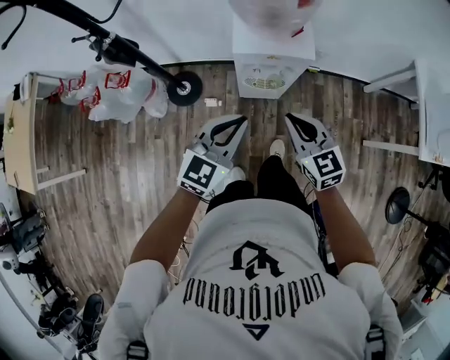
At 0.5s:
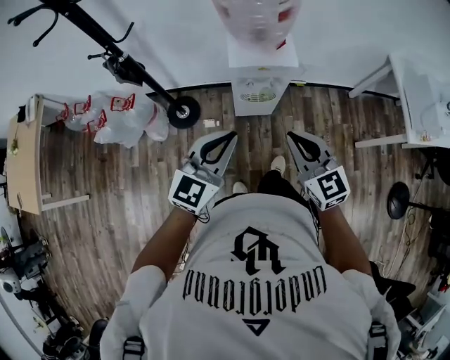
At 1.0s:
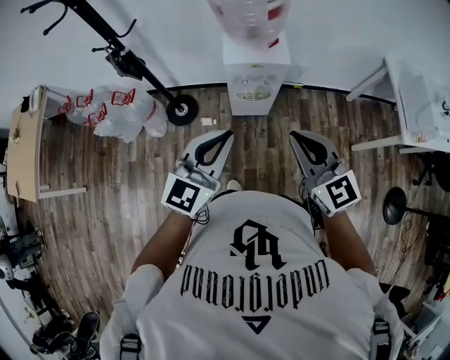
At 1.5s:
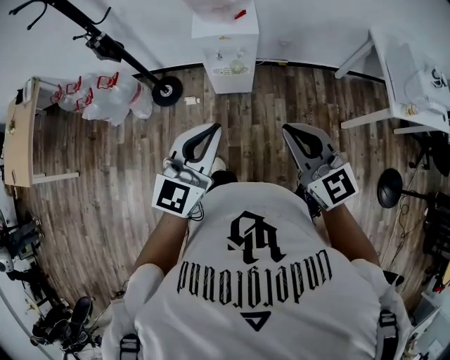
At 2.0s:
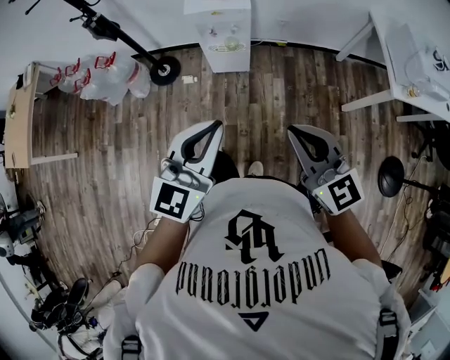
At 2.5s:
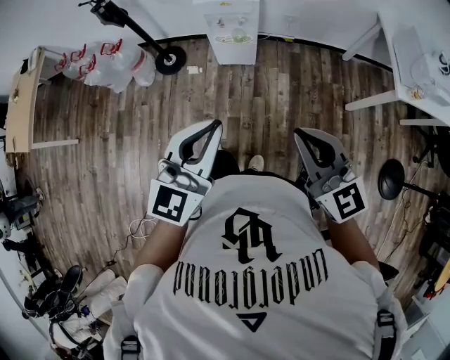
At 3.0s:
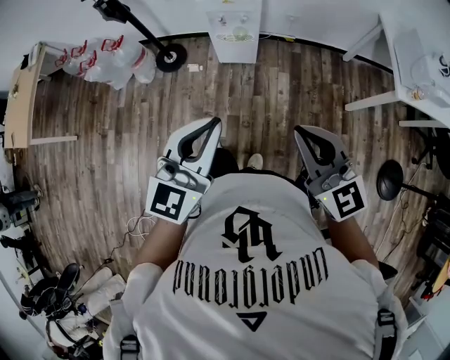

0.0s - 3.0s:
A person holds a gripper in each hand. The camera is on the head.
0.0s - 1.5s: The grippers both shift backward, upward and to the right by about 30 cm.
1.5s - 3.0s: Both grippers move backward, about 15 cm.

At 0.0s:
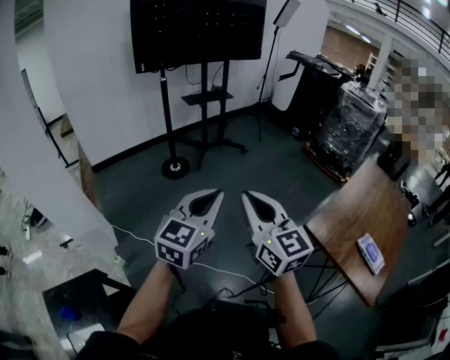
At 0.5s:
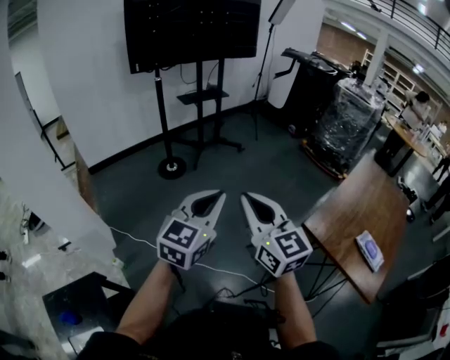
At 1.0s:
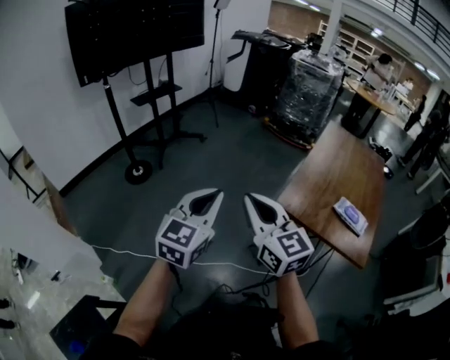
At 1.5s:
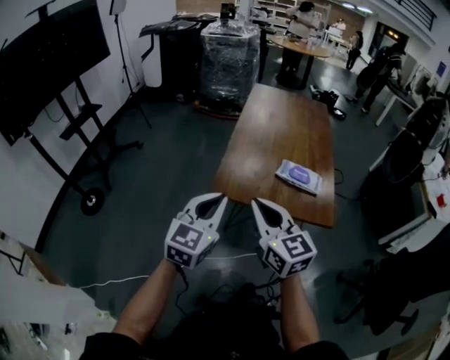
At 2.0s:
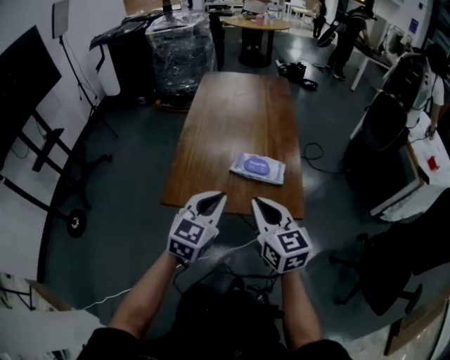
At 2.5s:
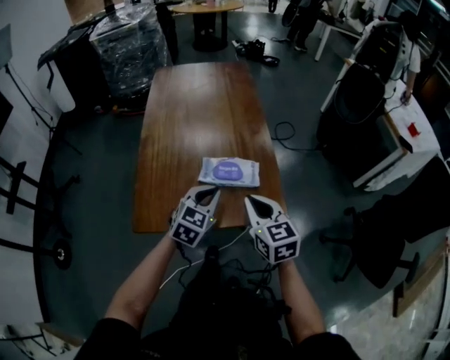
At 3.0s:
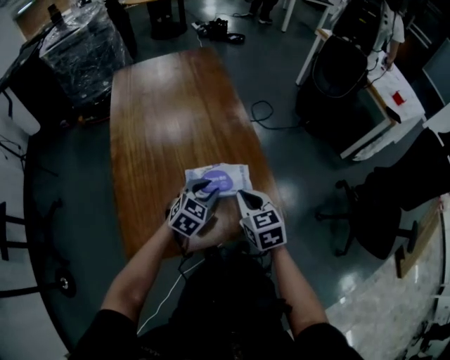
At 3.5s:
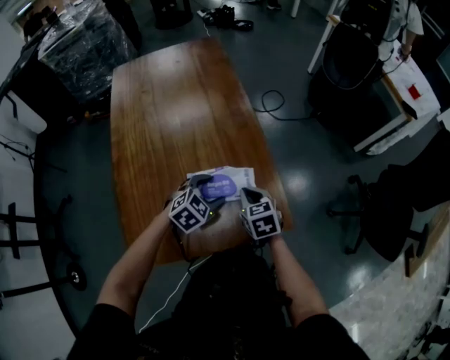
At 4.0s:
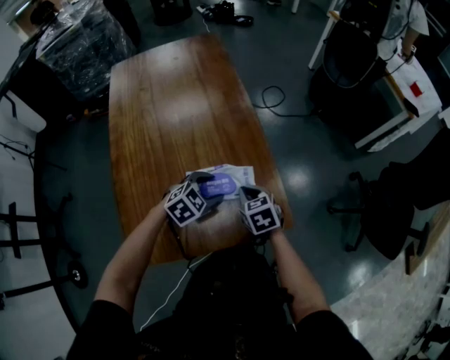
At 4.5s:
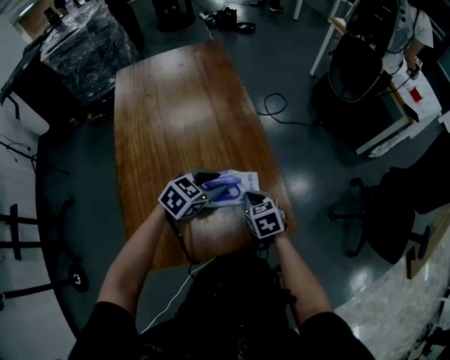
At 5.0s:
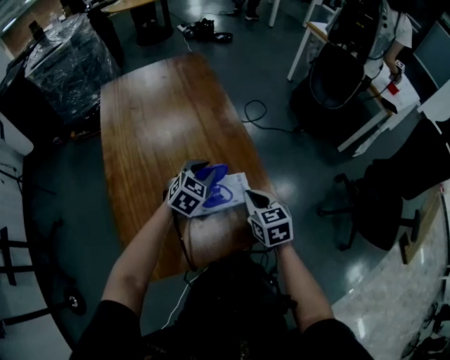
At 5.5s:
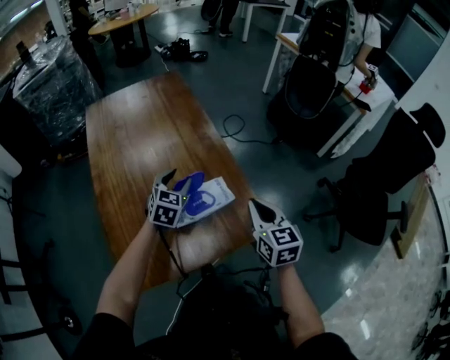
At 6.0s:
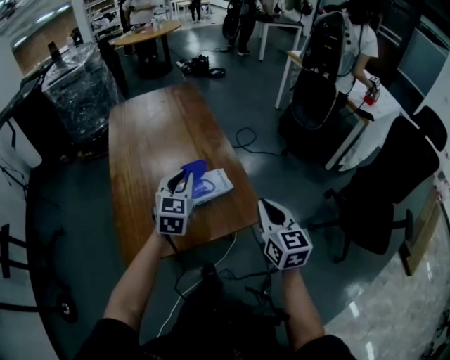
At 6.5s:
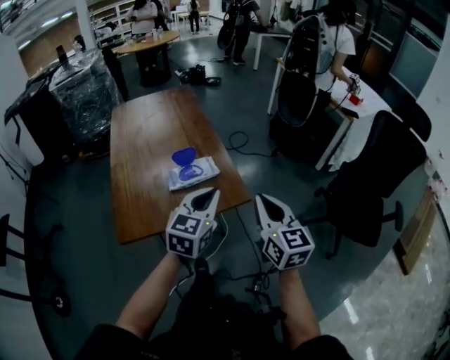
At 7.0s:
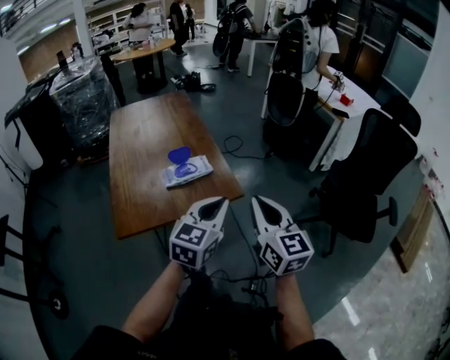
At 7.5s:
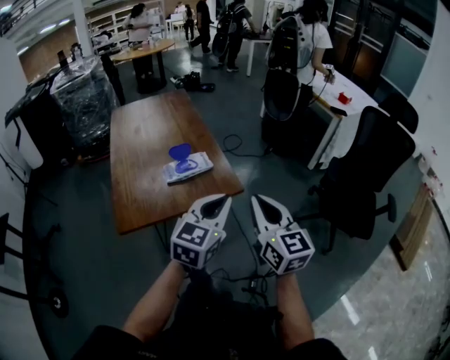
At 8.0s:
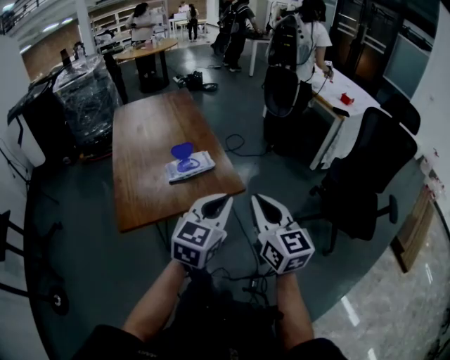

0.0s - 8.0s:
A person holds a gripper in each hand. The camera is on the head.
0.0s - 2.0s: Both grippers are carried approximately 60 cm. The right gripper changes its angle by some 60 degrees; the left gripper rotates about 50 degrees.
2.0s - 4.0s: The right gripper ends up some 35 cm from where it was, and tilts its fingers about 40 degrees downward, while the left gripper shifts by some 30 cm, tilts its fingers approximately 40 degrees downward, and opens up.
4.0s - 6.0s: The right gripper heads upward, to the right and backward, covering about 25 cm, and points its fingers some 40 degrees further upward. Meanwhile the left gripper heads upward, covering roughly 20 cm, points its fingers roughly 30 degrees further upward, and closes.
6.0s - 8.0s: The left gripper goes some 35 cm backward and to the right, and rotates about 20 degrees, while the right gripper shifts about 20 cm backward and upward.

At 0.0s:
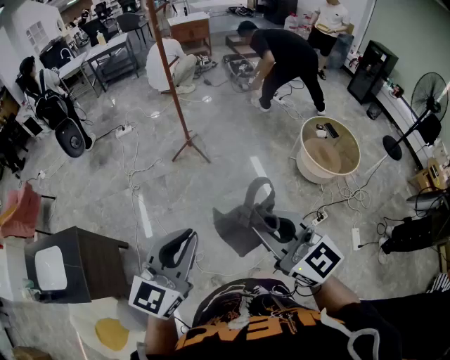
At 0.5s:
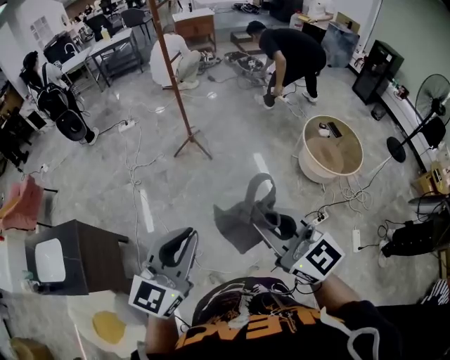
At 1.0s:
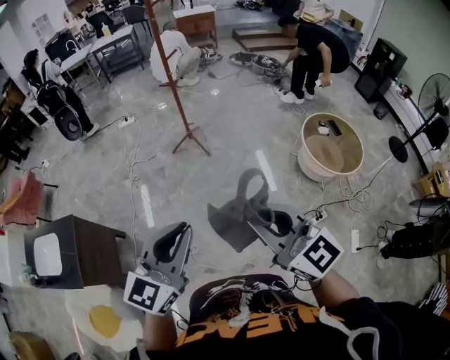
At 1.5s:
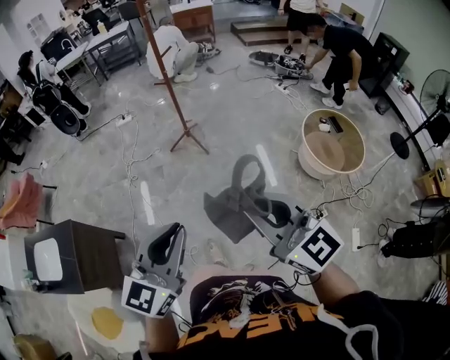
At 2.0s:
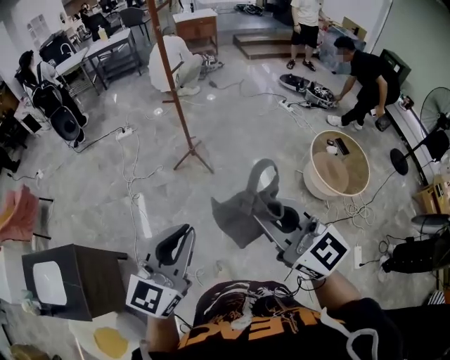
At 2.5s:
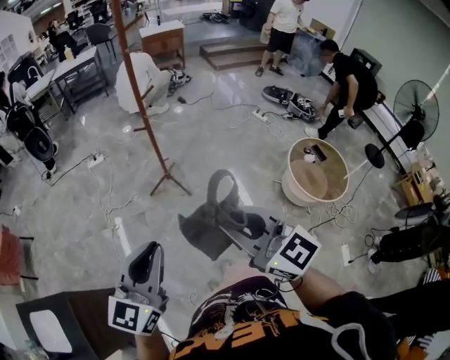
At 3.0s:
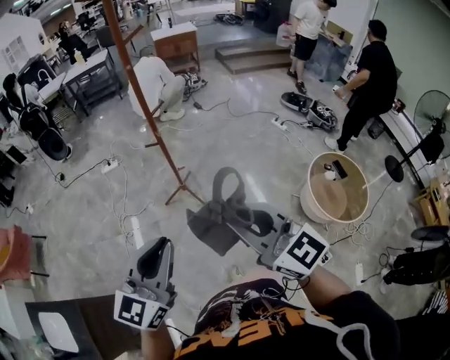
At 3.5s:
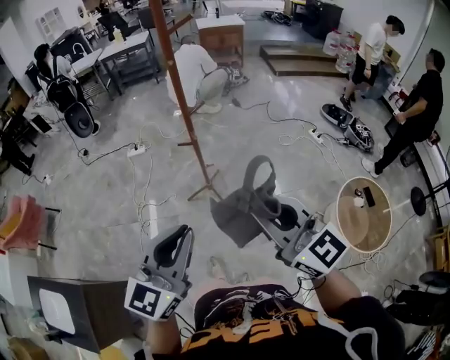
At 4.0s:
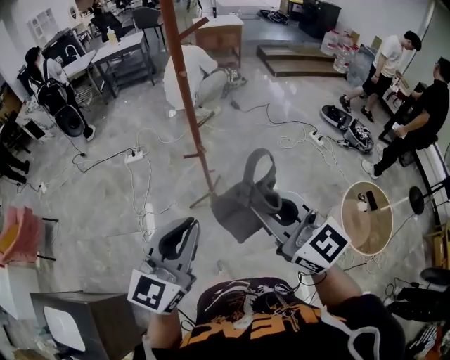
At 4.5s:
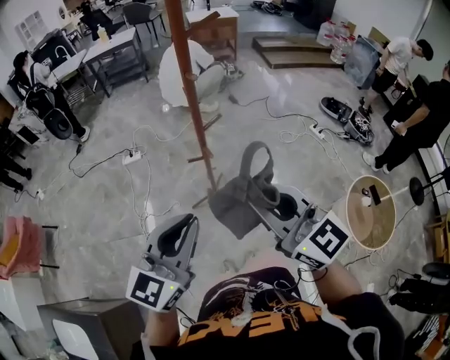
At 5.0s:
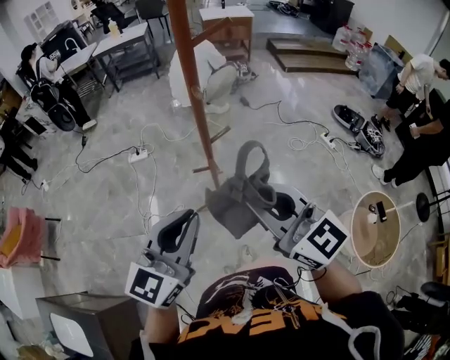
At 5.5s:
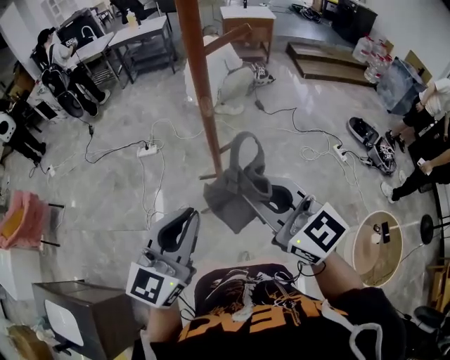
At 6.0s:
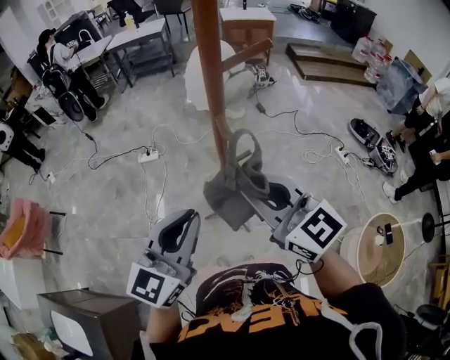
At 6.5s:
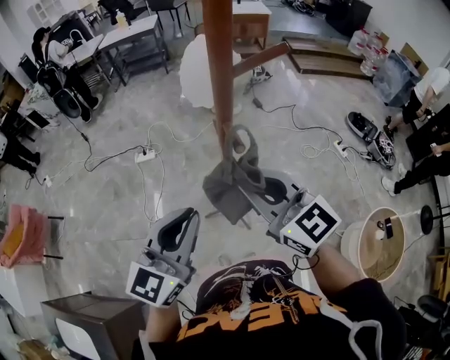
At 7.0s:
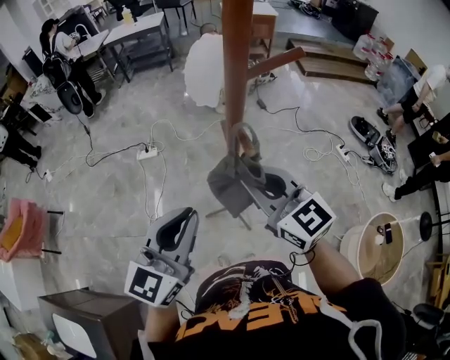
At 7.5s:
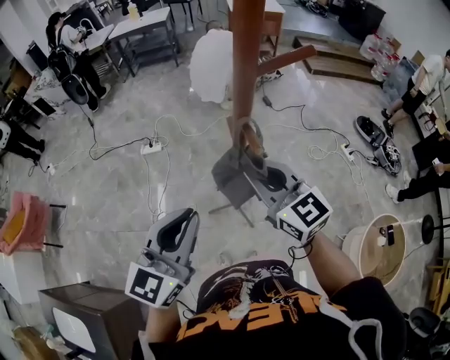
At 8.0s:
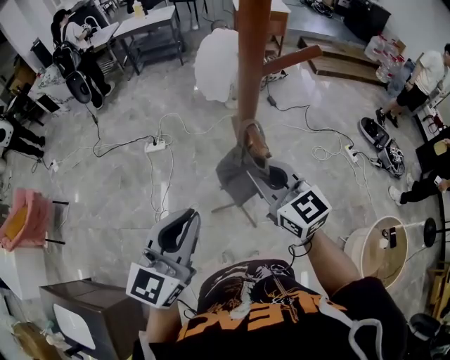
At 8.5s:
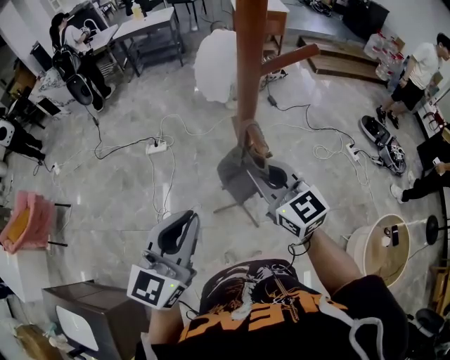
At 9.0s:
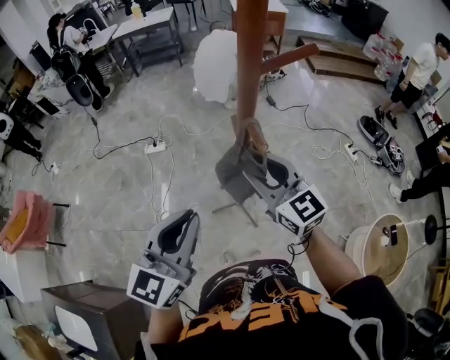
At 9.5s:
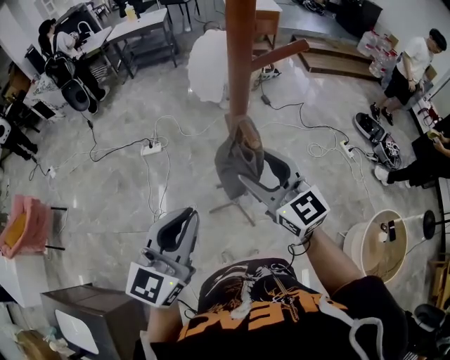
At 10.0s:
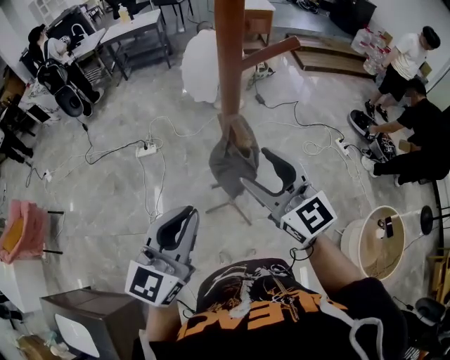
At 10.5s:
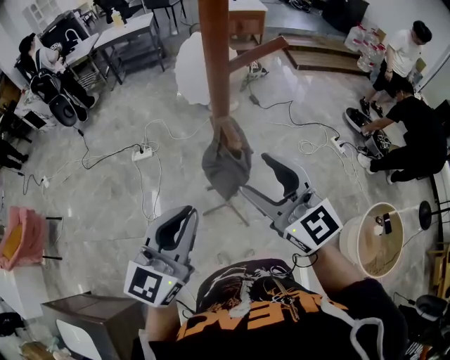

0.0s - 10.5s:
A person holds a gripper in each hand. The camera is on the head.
0.0s - 2.0s: Both grippers move forward, about 20 cm.
2.0s - 4.0s: Both grippers are carried forward, roughly 50 cm.
4.0s - 6.5s: Both grippers travel together forward, some 30 cm.
6.5s - 8.5s: The right gripper shifts approximately 10 cm downward and forward.
8.5s - 10.5s: The right gripper moves upward and backward, some 10 cm, and opens its fingers.

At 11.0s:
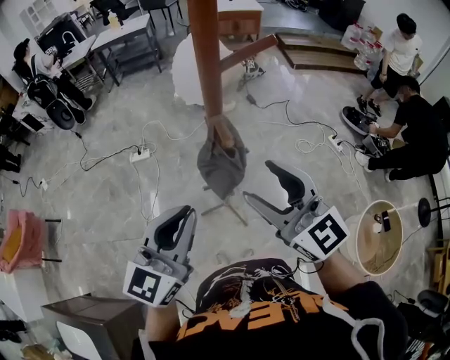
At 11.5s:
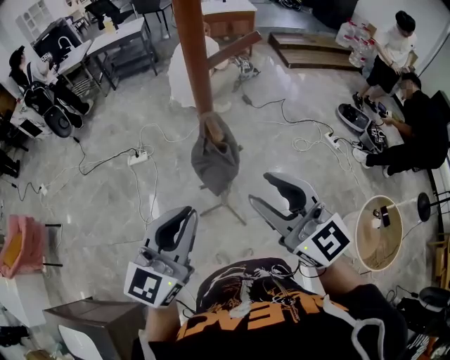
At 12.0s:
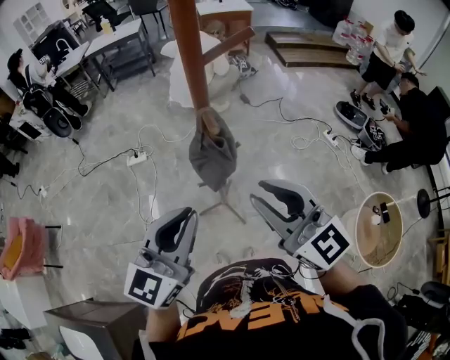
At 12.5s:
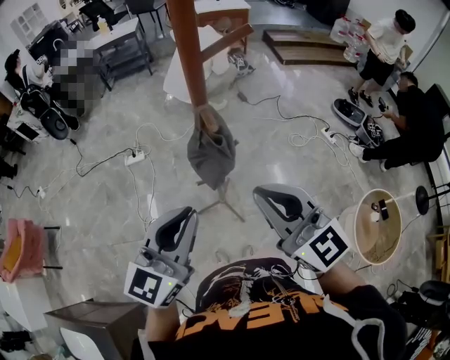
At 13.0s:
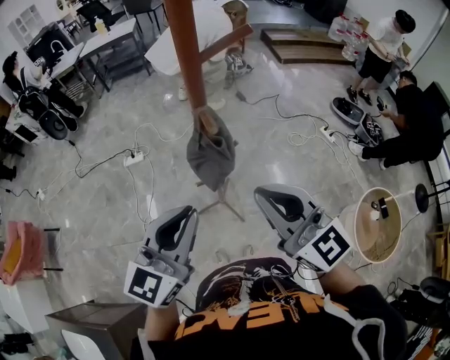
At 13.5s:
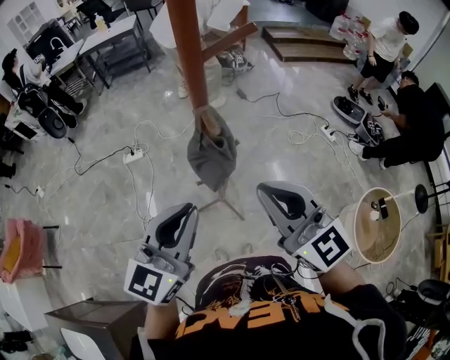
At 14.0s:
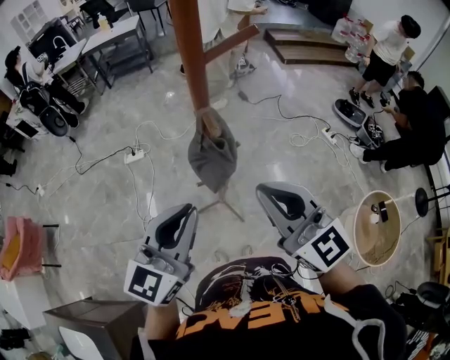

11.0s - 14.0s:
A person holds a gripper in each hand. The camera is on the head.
11.0s - 12.5s: The right gripper goes some 5 cm backward, and closes up.
12.5s - 14.0s: The grippers move only a little.

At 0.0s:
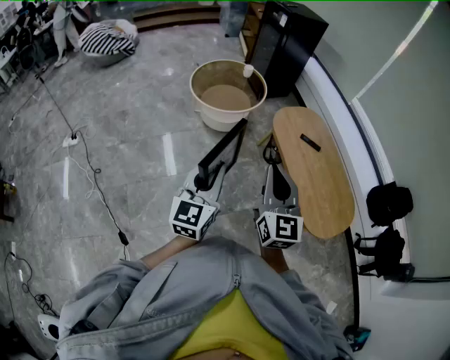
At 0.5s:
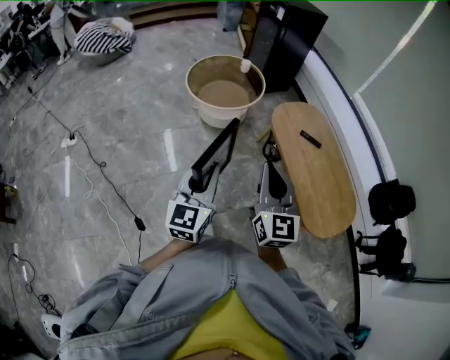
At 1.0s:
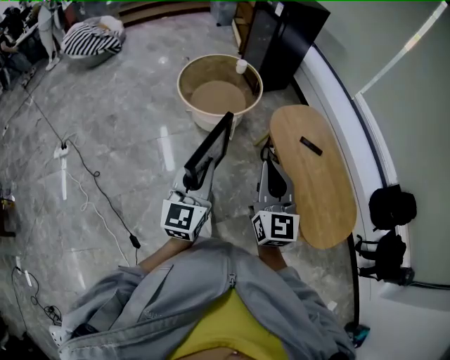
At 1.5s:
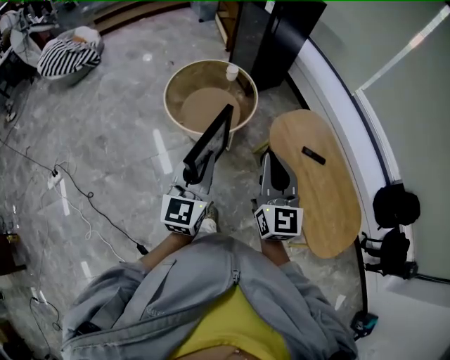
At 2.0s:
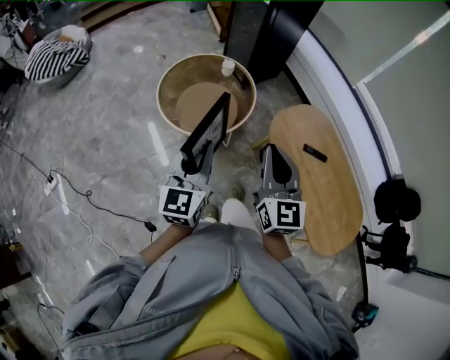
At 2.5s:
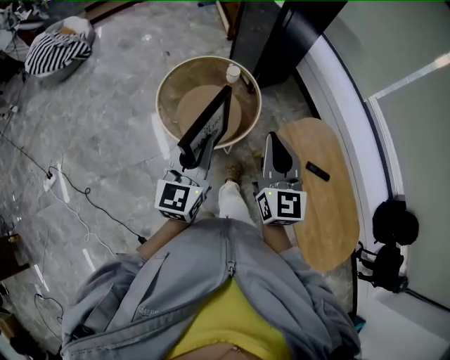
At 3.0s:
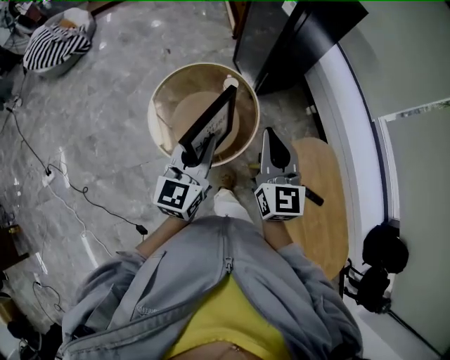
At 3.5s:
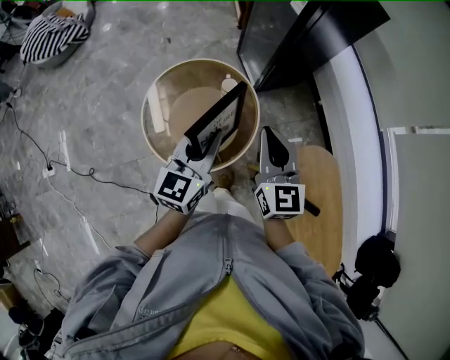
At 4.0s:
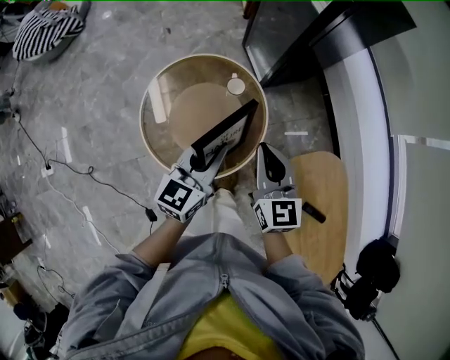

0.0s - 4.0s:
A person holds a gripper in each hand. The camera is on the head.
0.0s - 2.0s: The two grippers travel together, forward, some 40 cm.
2.0s - 4.0s: The two grippers travel together, forward, about 40 cm. The right gripper rotates roughly 20 degrees.
